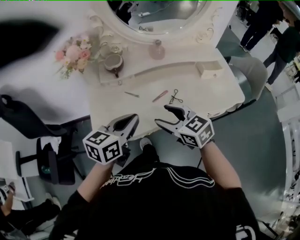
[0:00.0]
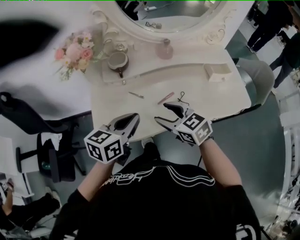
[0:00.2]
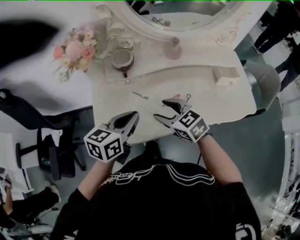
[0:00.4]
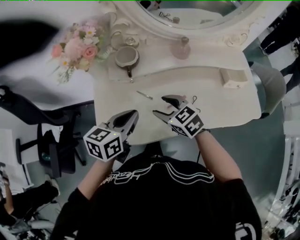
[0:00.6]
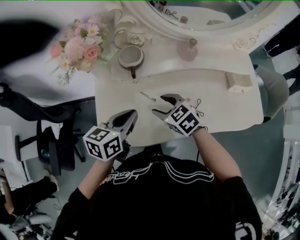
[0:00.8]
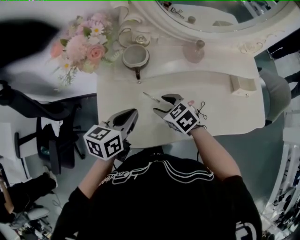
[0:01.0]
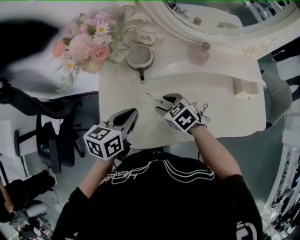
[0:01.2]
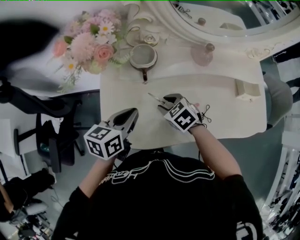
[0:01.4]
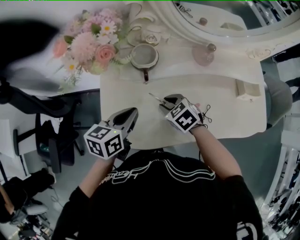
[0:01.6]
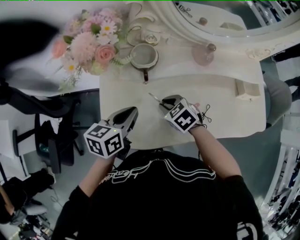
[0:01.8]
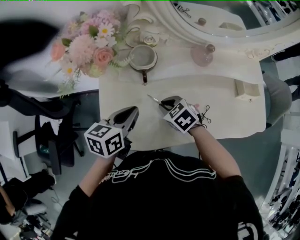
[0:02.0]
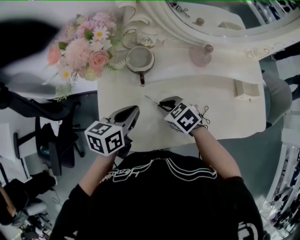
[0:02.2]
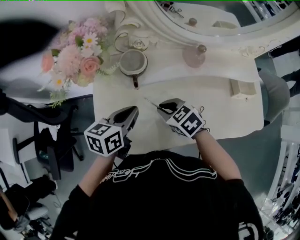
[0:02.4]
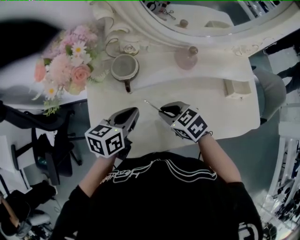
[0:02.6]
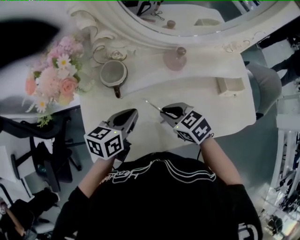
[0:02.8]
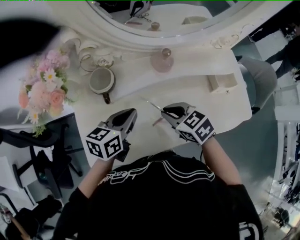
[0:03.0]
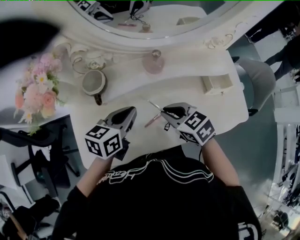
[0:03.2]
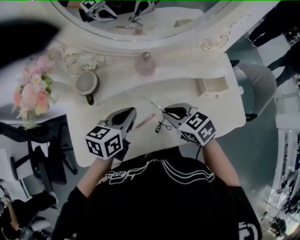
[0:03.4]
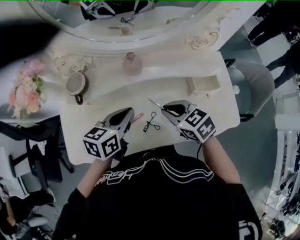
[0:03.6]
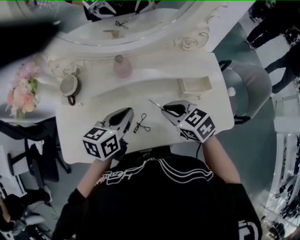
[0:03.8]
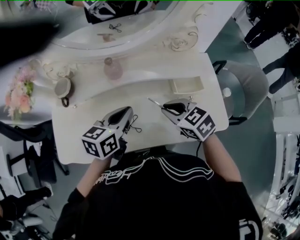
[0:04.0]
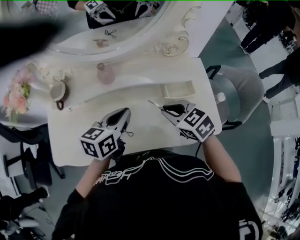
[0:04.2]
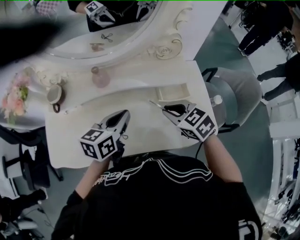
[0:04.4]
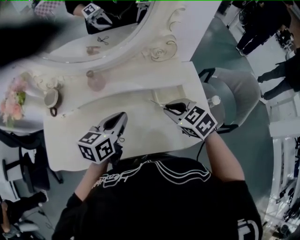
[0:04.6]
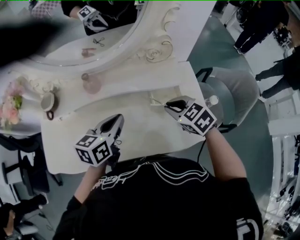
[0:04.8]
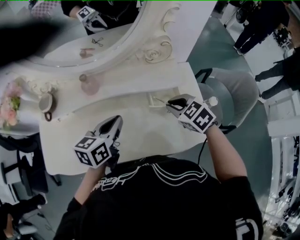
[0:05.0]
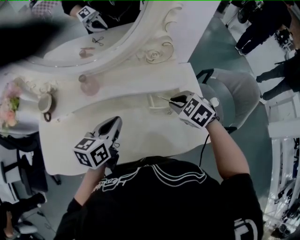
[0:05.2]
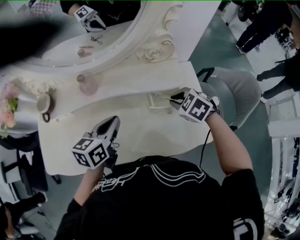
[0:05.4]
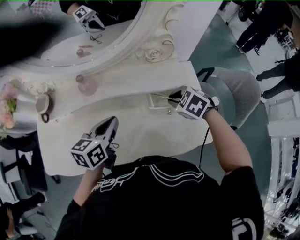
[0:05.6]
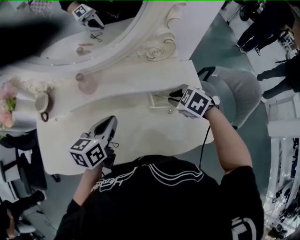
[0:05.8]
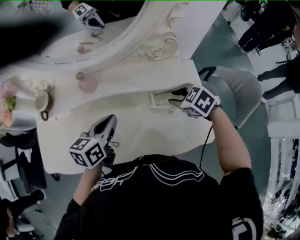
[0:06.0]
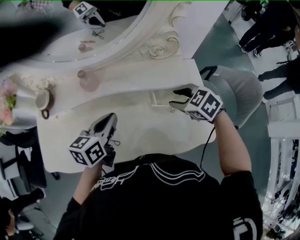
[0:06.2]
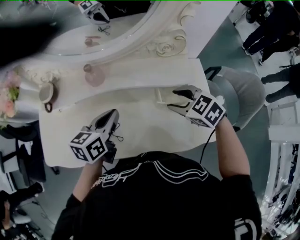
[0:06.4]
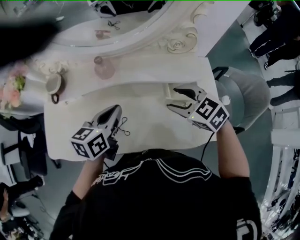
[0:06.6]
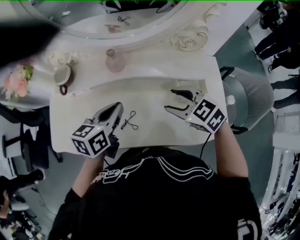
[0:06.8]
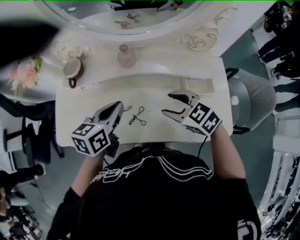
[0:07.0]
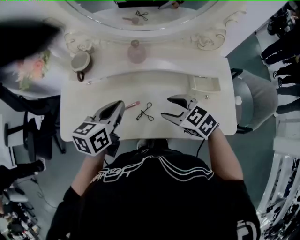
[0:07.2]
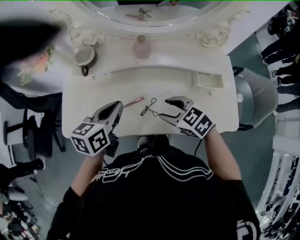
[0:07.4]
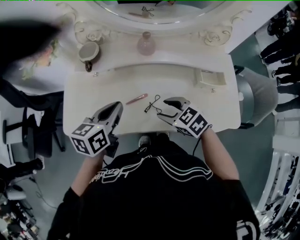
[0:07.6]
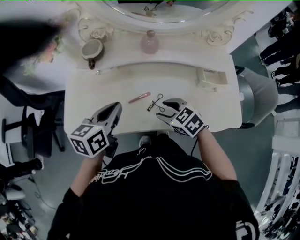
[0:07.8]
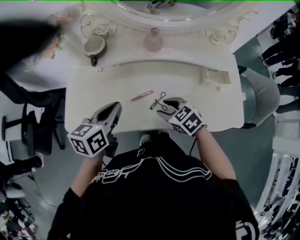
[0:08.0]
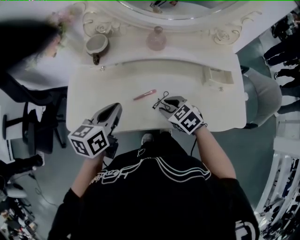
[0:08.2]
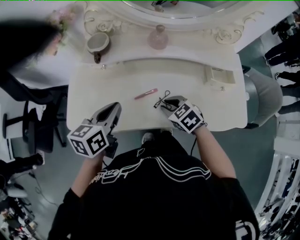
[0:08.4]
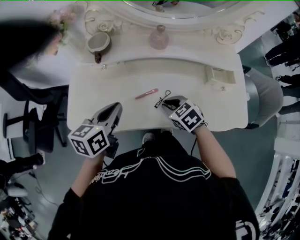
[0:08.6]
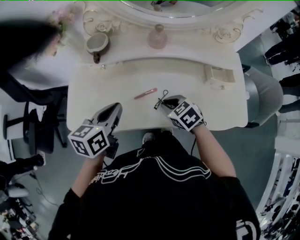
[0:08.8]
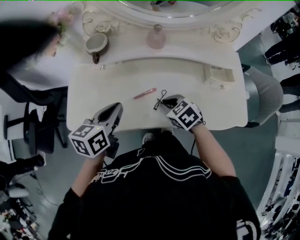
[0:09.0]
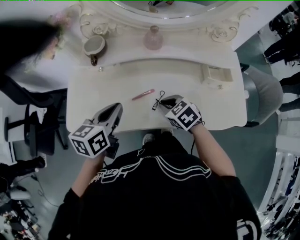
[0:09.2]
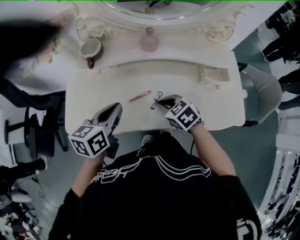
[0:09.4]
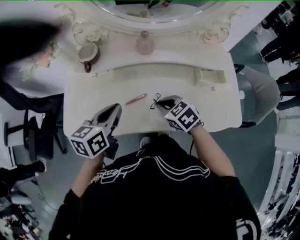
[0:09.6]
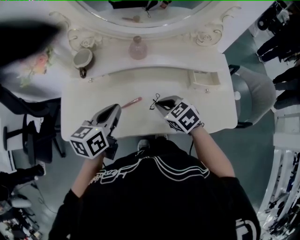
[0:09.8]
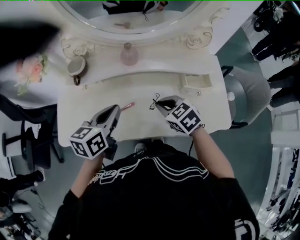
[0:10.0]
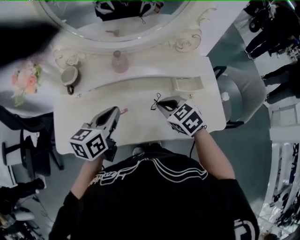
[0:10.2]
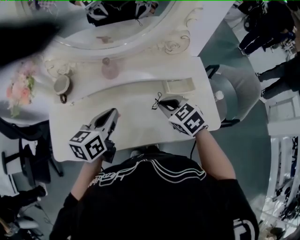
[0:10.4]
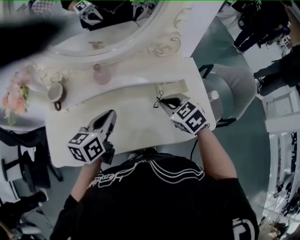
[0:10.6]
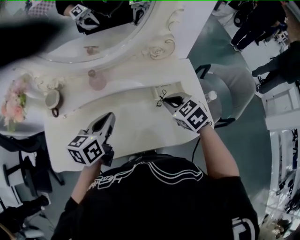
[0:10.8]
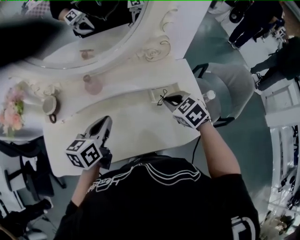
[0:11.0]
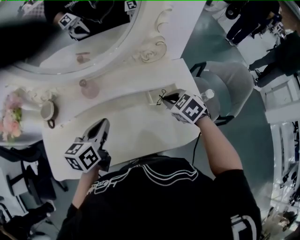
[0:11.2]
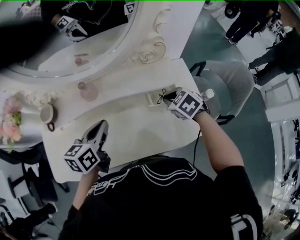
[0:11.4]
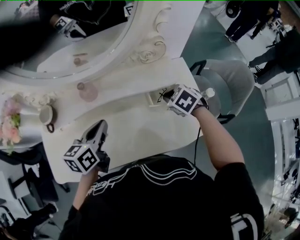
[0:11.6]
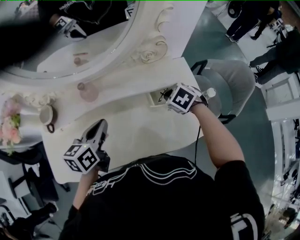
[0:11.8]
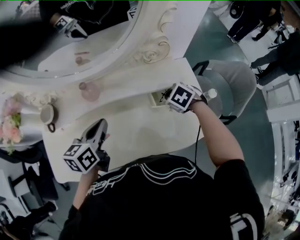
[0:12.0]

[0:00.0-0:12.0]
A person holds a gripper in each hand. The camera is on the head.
0:00.0 to 0:01.6: The left gripper goes about 20 cm forward, downward and to the left. Meanwhile the right gripper travels forward and downward by about 25 cm, rotates some 30 degrees, and closes its fingers.
0:01.6 to 0:03.0: The right gripper goes some 15 cm to the right and upward. The left gripper goes approximately 15 cm to the right.
0:03.0 to 0:04.4: The grippers both shift to the right by about 30 cm.
0:04.4 to 0:06.0: The right gripper travels to the right, forward and downward by some 15 cm.
0:06.0 to 0:07.6: The two grippers go roughly 25 cm to the left. The right gripper opens up.
0:07.6 to 0:09.0: The right gripper is displaced downward by some 5 cm, and closes up.
0:09.0 to 0:10.4: The left gripper travels to the right by some 15 cm; the right gripper goes roughly 20 cm to the right and upward.
0:10.4 to 0:12.0: The left gripper moves about 5 cm, while the right gripper shifts by roughly 20 cm, and rotates roughly 30 degrees.

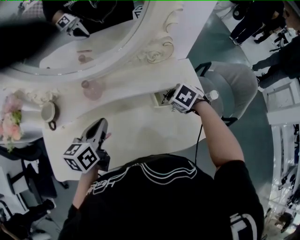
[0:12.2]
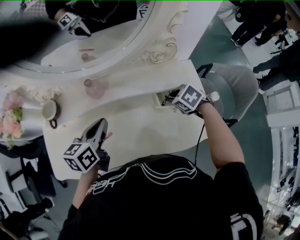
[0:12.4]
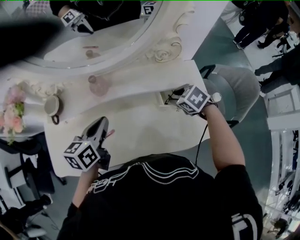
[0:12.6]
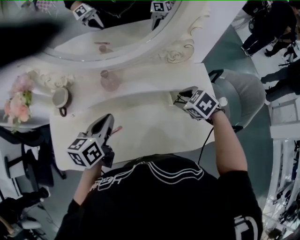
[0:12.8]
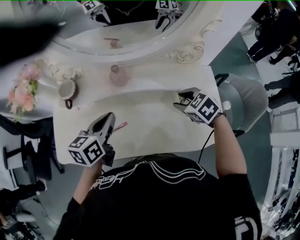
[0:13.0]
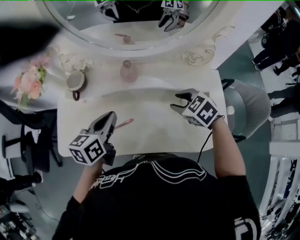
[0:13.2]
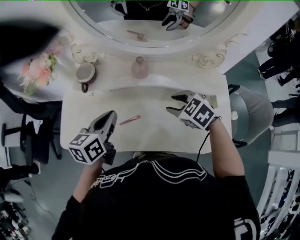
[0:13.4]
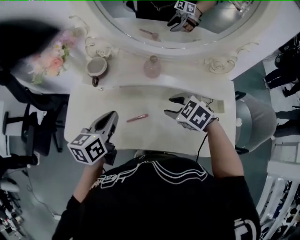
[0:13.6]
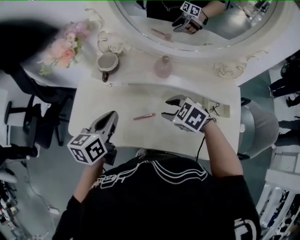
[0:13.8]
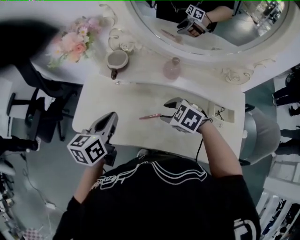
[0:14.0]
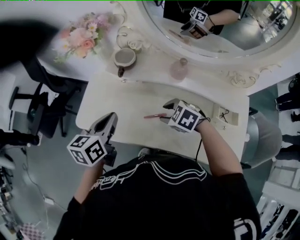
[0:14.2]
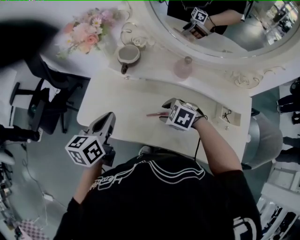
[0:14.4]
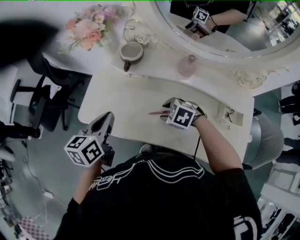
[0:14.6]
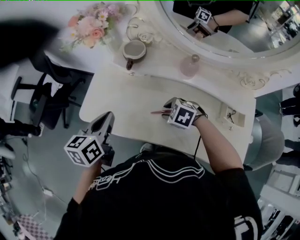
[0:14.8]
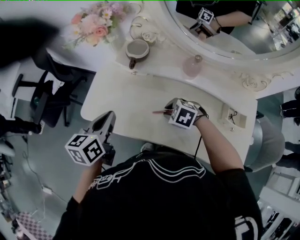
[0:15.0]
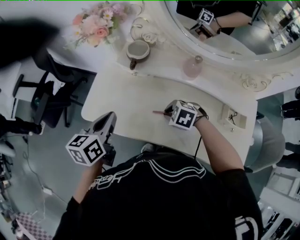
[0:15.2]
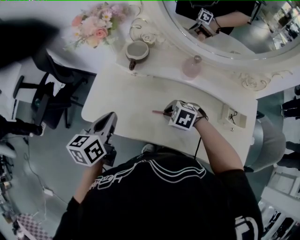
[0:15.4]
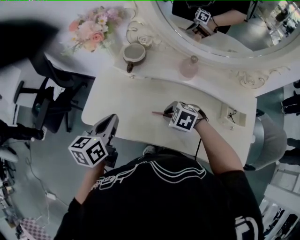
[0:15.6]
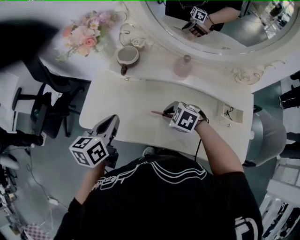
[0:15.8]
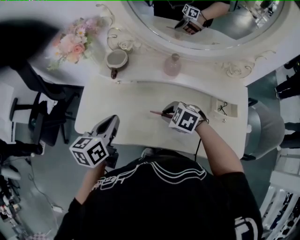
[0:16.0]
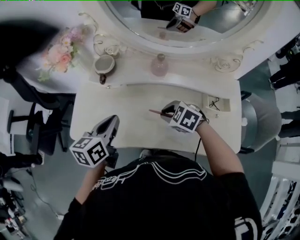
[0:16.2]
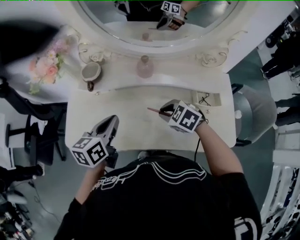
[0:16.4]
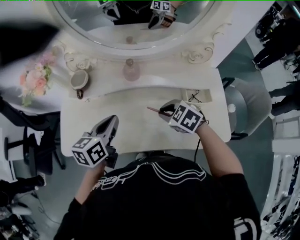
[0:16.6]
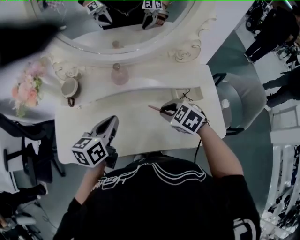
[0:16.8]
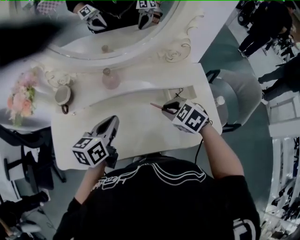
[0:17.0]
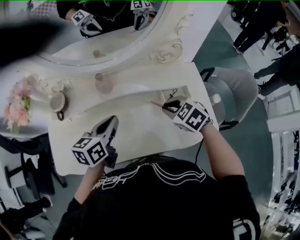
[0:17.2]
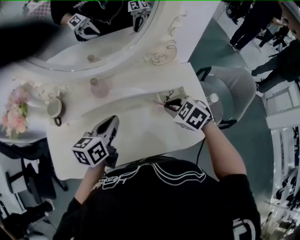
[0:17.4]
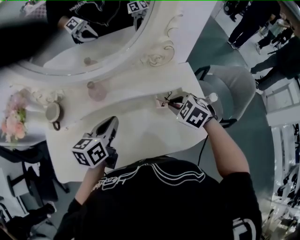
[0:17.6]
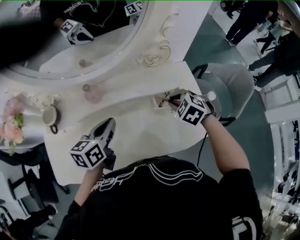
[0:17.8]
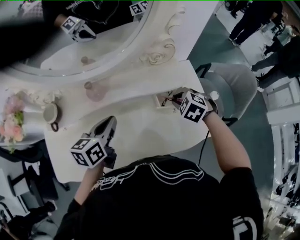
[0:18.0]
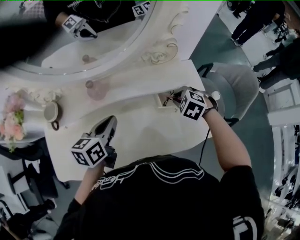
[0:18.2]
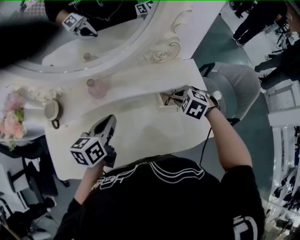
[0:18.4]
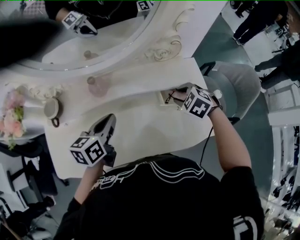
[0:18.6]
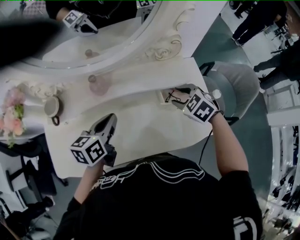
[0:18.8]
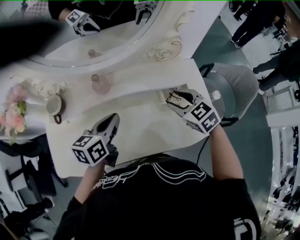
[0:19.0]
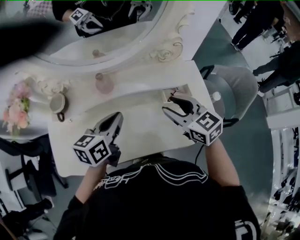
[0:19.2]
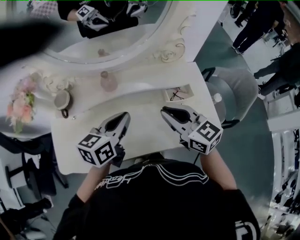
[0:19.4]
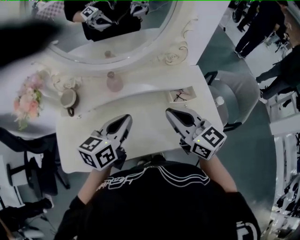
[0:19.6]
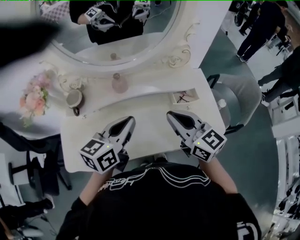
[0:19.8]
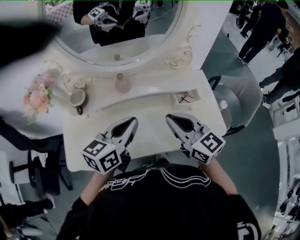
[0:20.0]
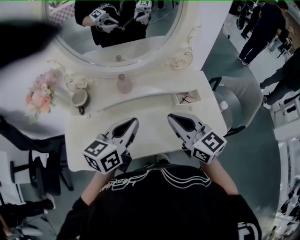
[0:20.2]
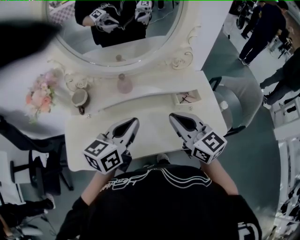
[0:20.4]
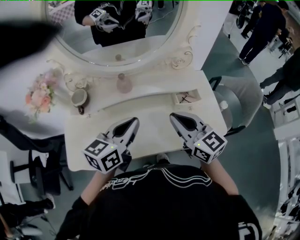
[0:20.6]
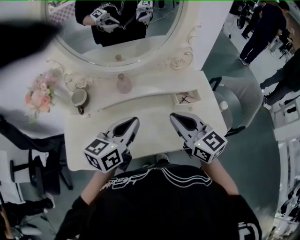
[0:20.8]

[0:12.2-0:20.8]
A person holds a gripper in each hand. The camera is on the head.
0:12.2 to 0:13.6: Both grippers move to the left, about 20 cm. The right gripper changes its angle by roughly 30 degrees, and opens.
0:13.6 to 0:15.0: The right gripper shifts roughly 15 cm to the left and downward, and swivels some 30 degrees. Meanwhile the left gripper heads to the left, covering approximately 15 cm.
0:15.0 to 0:16.6: The right gripper changes place by approximately 20 cm, and changes its angle by roughly 30 degrees. The left gripper moves approximately 20 cm, and turns by about 30 degrees.
0:16.6 to 0:18.0: The left gripper shifts by some 15 cm. The right gripper ends up approximately 20 cm from where it was, and changes its angle by roughly 20 degrees.
0:18.0 to 0:19.4: The left gripper ends up roughly 5 cm from where it was. The right gripper heads upward, to the left and backward, covering some 20 cm, tips its fingers upward by some 50 degrees, and opens, then closes once more.
0:19.4 to 0:20.8: The right gripper moves roughly 5 cm, while the left gripper is displaced upward by about 5 cm.

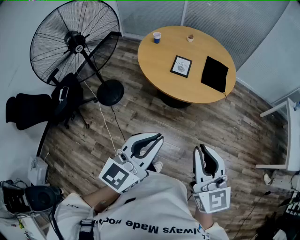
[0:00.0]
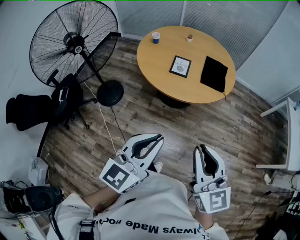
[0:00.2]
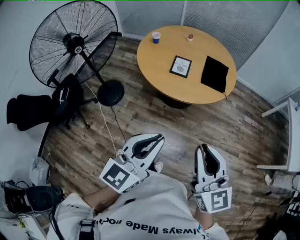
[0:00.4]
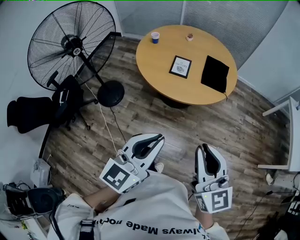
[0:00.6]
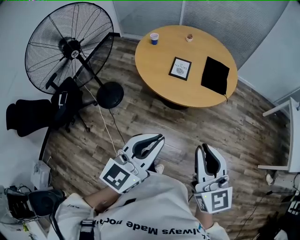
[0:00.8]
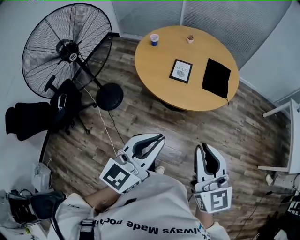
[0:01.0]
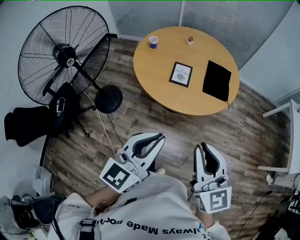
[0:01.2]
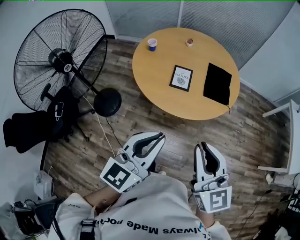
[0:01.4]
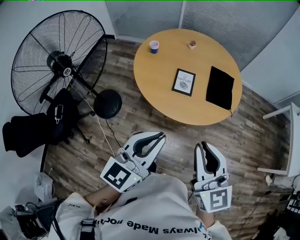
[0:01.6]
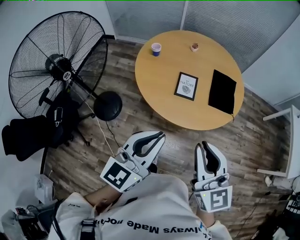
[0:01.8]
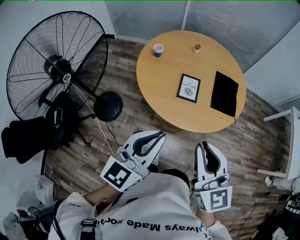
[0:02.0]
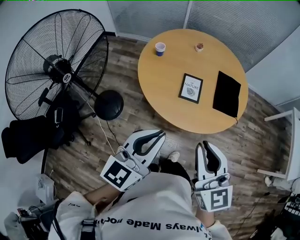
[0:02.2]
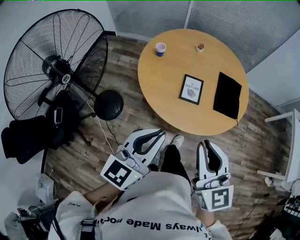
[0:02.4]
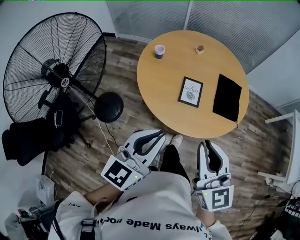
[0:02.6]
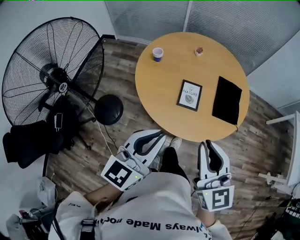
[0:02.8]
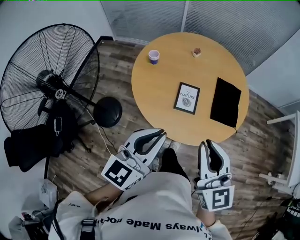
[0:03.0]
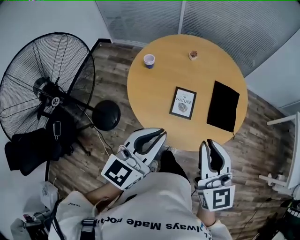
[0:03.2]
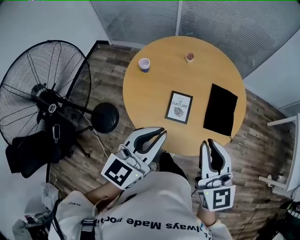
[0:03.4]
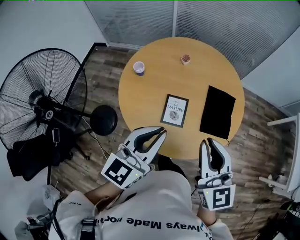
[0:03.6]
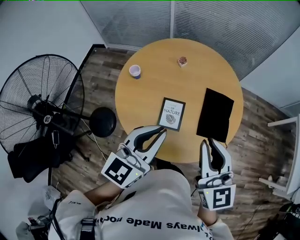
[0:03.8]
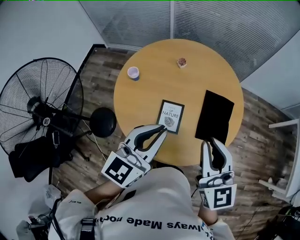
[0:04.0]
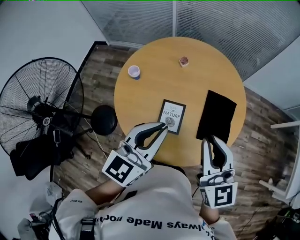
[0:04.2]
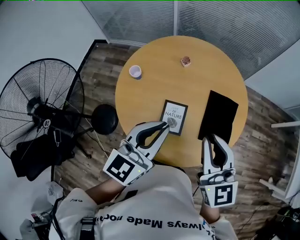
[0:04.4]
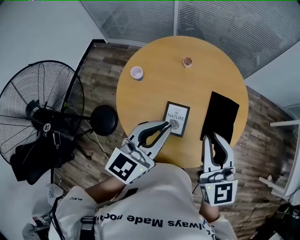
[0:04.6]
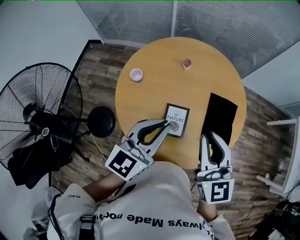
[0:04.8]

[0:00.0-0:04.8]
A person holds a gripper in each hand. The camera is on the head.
0:00.0 to 0:01.6: Both grippers move forward, some 25 cm.
0:01.6 to 0:03.2: Both grippers travel together forward, roughly 20 cm.
0:03.2 to 0:04.8: The two grippers go some 20 cm forward.
